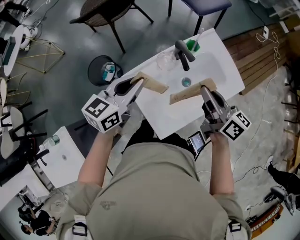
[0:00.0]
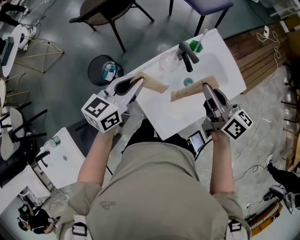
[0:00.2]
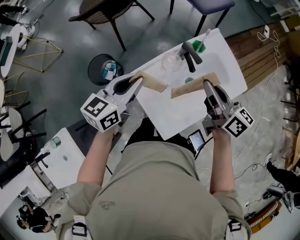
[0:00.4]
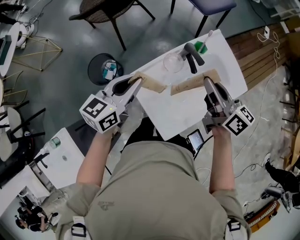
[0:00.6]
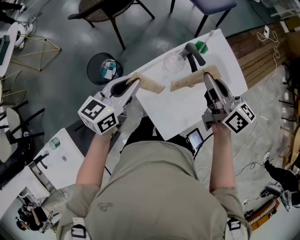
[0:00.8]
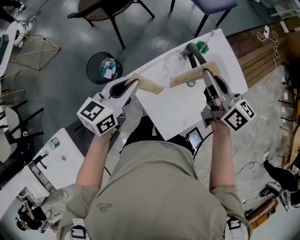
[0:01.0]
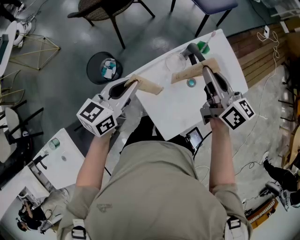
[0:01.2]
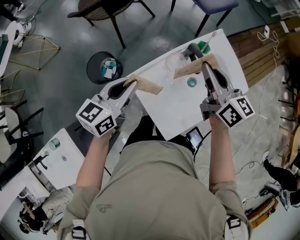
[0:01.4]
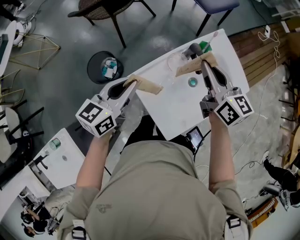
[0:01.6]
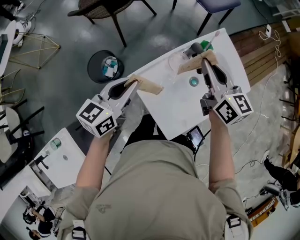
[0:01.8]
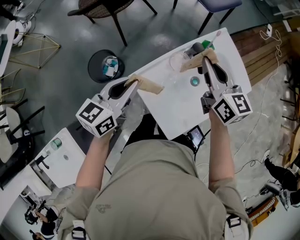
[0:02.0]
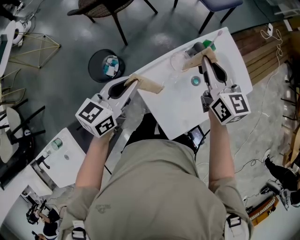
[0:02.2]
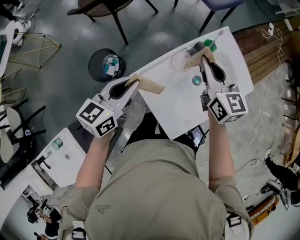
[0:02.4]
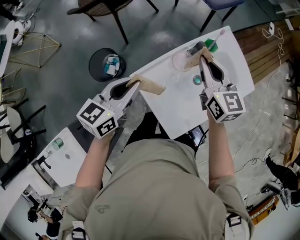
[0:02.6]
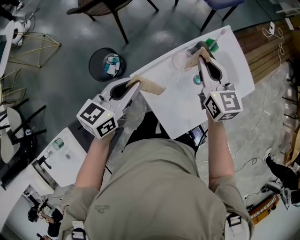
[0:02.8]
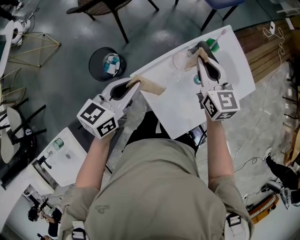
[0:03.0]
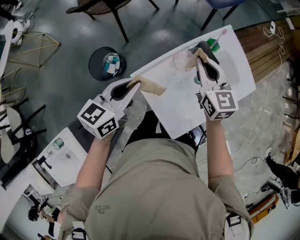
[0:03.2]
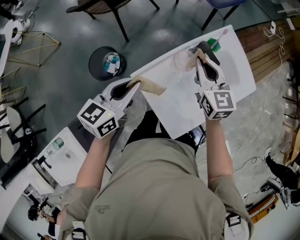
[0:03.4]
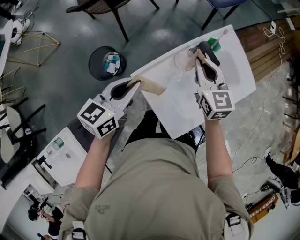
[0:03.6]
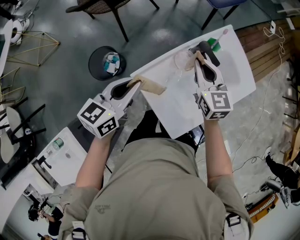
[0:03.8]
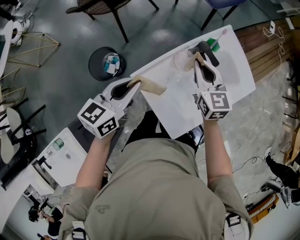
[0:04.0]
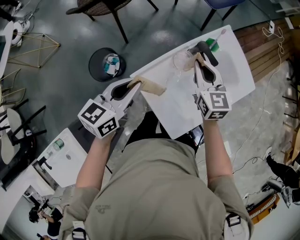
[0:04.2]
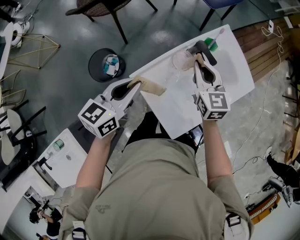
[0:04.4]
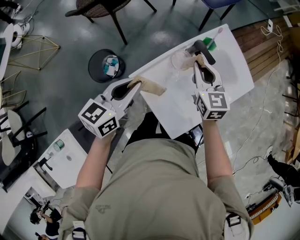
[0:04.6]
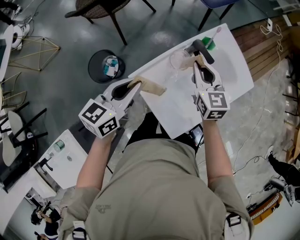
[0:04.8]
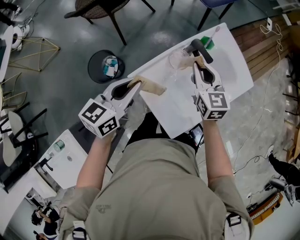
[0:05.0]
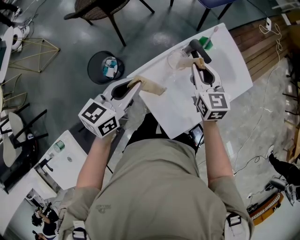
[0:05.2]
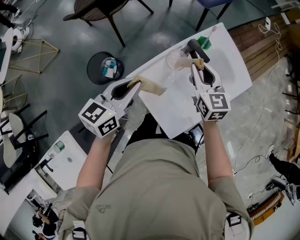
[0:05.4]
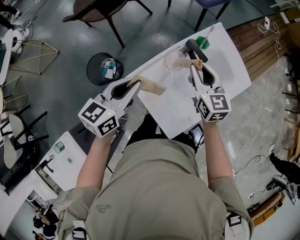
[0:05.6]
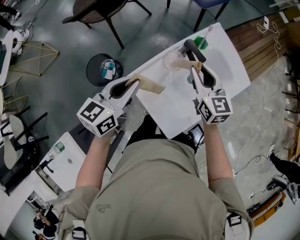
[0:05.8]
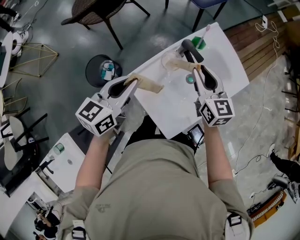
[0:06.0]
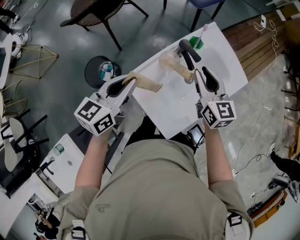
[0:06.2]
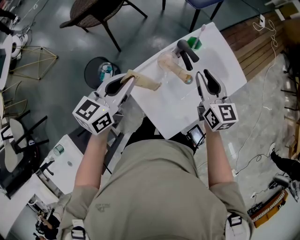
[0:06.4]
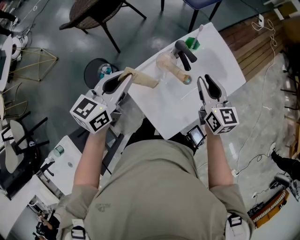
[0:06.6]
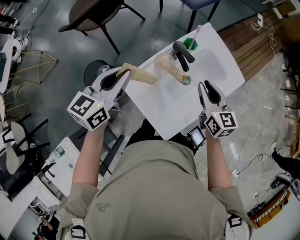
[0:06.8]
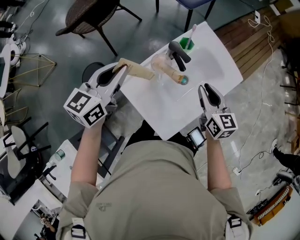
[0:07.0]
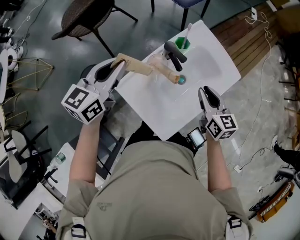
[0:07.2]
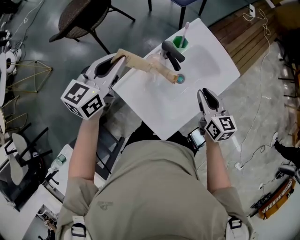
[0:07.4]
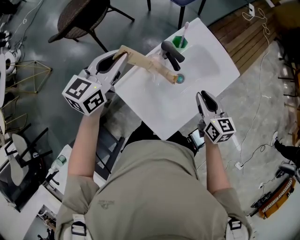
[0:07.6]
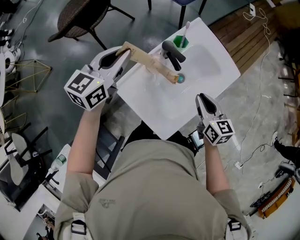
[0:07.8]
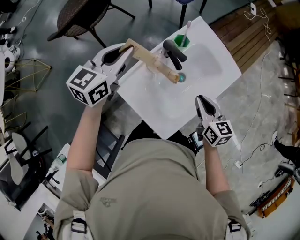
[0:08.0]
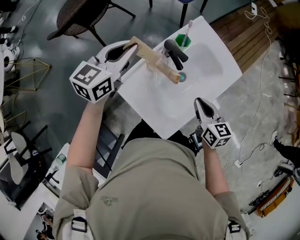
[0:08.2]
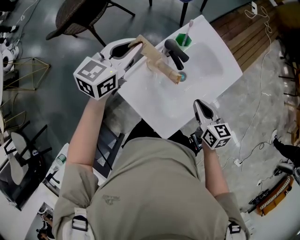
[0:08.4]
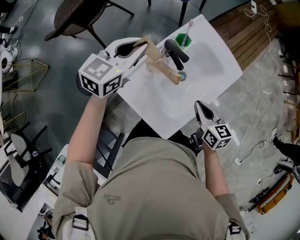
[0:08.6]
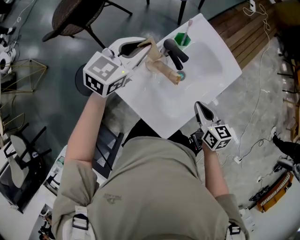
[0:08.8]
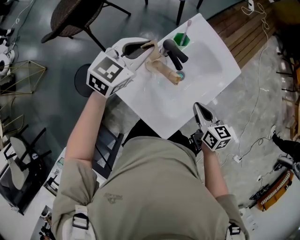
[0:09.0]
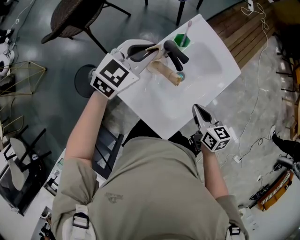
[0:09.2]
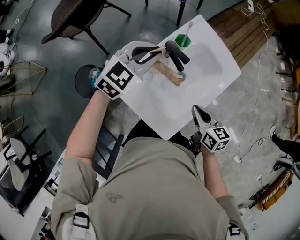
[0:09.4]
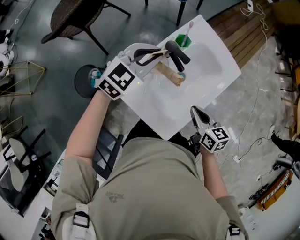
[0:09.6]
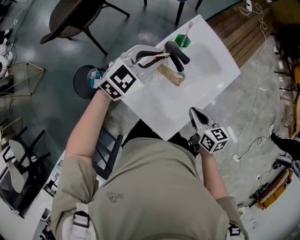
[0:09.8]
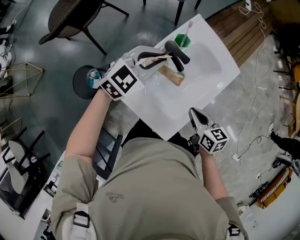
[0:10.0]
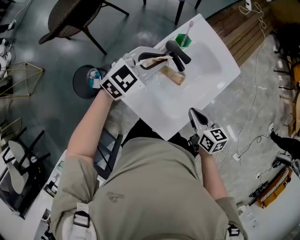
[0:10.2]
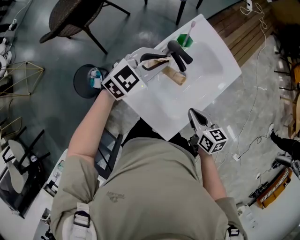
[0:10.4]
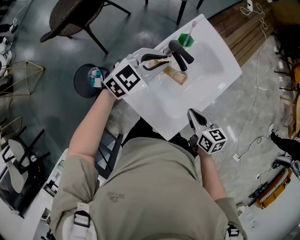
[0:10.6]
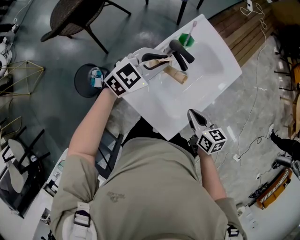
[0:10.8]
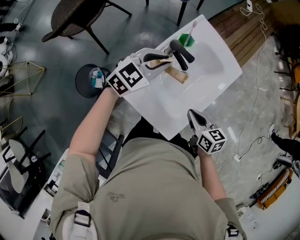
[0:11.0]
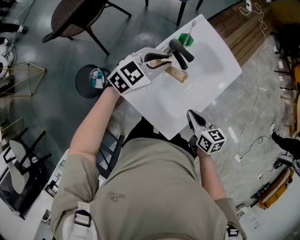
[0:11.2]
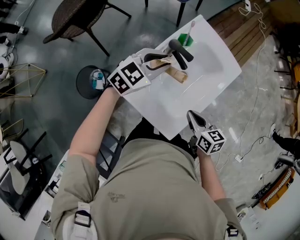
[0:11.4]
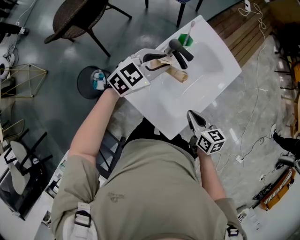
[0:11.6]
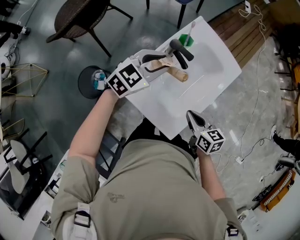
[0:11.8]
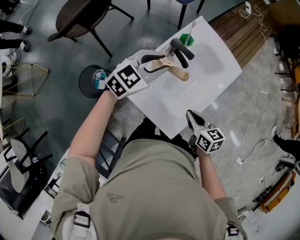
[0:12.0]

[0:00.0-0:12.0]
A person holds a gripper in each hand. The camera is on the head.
0:00.0 to 0:01.6: The right gripper goes some 10 cm forward and to the left, and swivels about 20 degrees; the left gripper heads to the left, covering roughly 5 cm.
0:01.6 to 0:03.0: The right gripper is displaced downward by some 5 cm.
0:03.0 to 0:04.4: There are only small adjustments of the grippers.
0:04.4 to 0:06.0: The right gripper moves some 5 cm.
0:06.0 to 0:07.6: The left gripper shifts roughly 10 cm forward. The right gripper is displaced to the right and backward by some 15 cm.
0:07.6 to 0:09.0: The left gripper shifts approximately 5 cm to the right, and rotates some 20 degrees. The right gripper moves some 5 cm.
0:09.0 to 0:10.4: The left gripper changes place by some 5 cm.
0:10.4 to 0:12.0: The grippers move only a little.

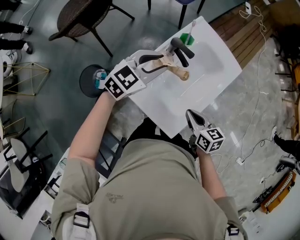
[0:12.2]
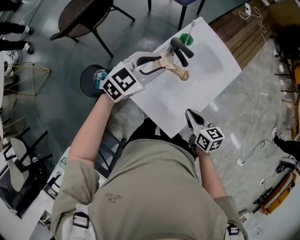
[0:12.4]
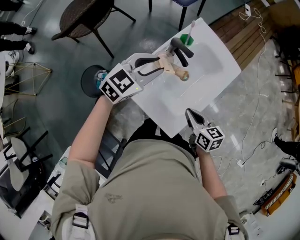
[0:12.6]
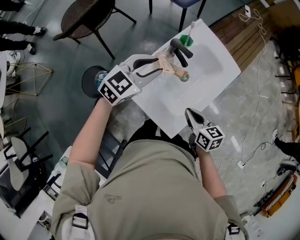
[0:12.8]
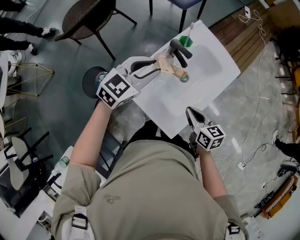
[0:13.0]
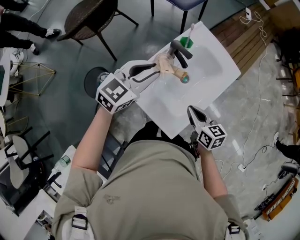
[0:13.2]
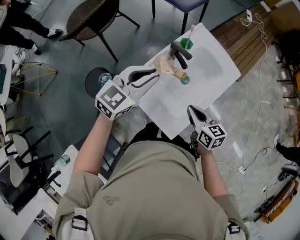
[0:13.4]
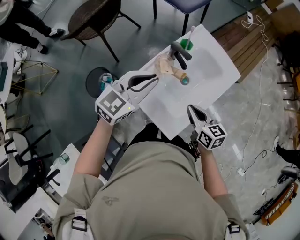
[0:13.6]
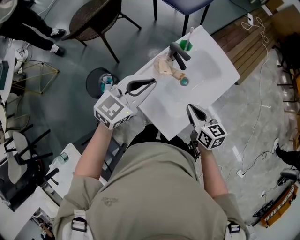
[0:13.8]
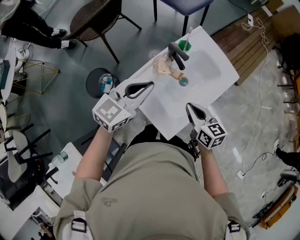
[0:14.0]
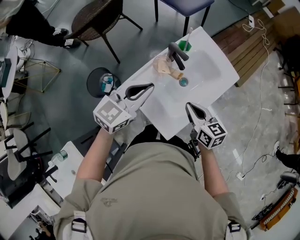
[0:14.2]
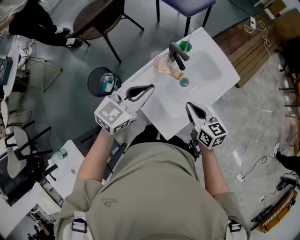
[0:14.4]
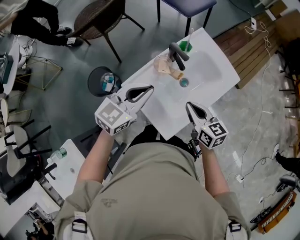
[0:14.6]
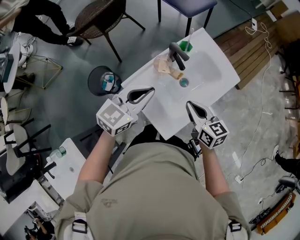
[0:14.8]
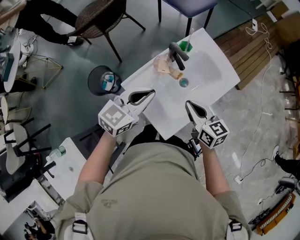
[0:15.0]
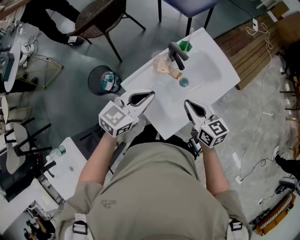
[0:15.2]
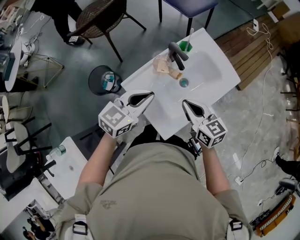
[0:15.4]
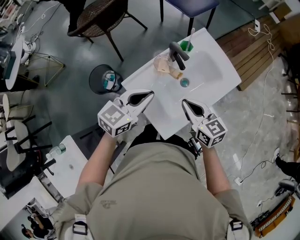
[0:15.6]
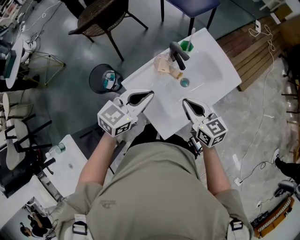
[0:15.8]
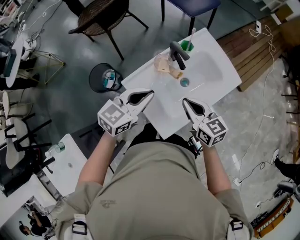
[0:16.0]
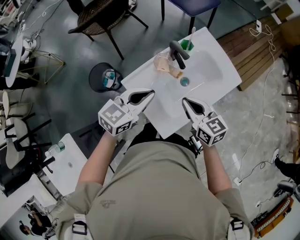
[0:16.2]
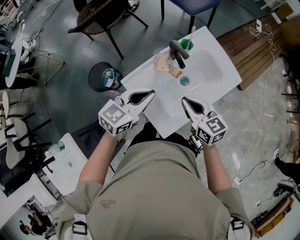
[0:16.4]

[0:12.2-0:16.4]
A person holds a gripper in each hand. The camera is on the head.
0:12.2 to 0:13.6: The left gripper heads backward and upward, covering about 10 cm.
0:13.6 to 0:15.0: The left gripper is displaced backward by roughly 5 cm.
0:15.0 to 0:16.4: The grippers move only a little.

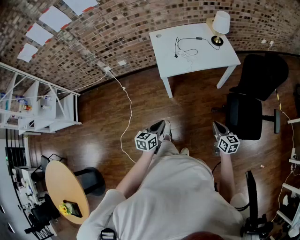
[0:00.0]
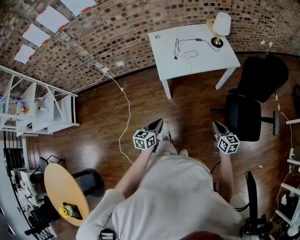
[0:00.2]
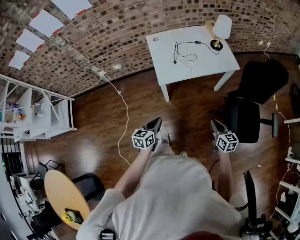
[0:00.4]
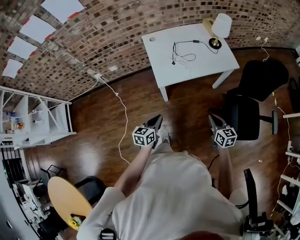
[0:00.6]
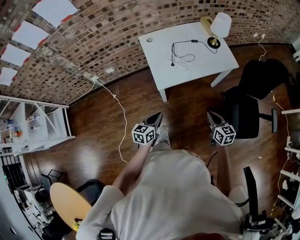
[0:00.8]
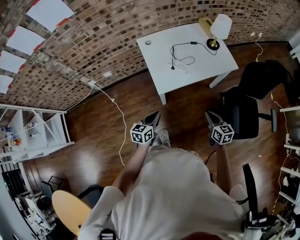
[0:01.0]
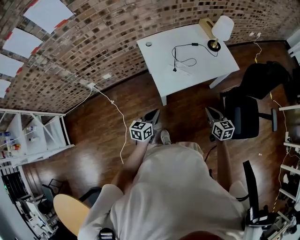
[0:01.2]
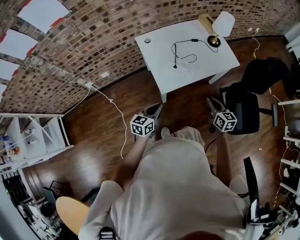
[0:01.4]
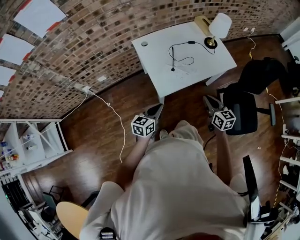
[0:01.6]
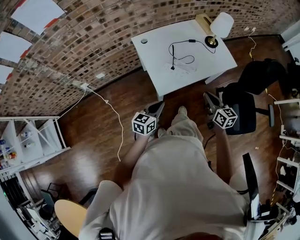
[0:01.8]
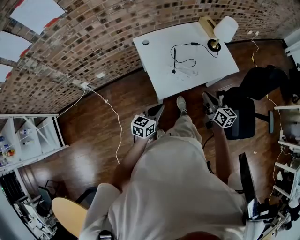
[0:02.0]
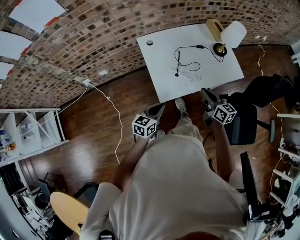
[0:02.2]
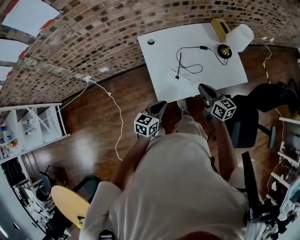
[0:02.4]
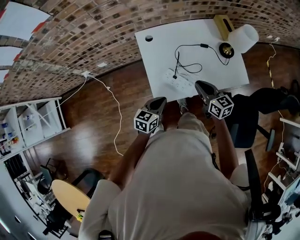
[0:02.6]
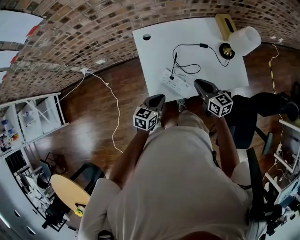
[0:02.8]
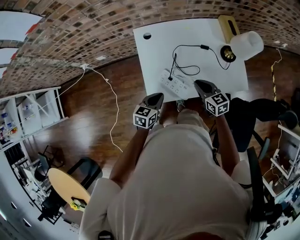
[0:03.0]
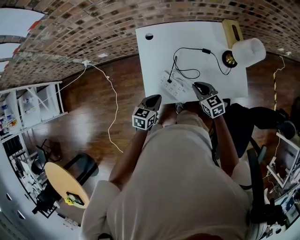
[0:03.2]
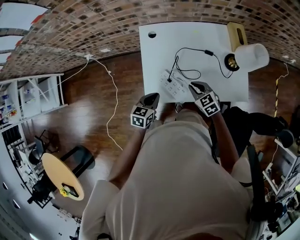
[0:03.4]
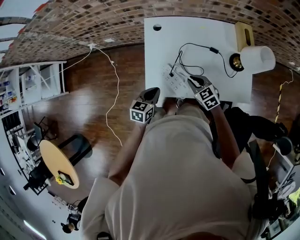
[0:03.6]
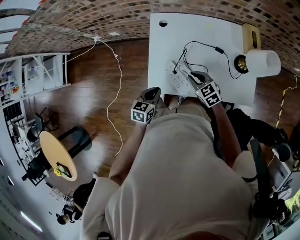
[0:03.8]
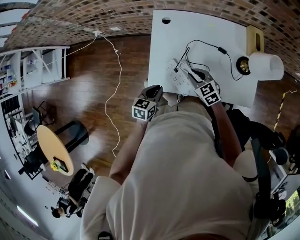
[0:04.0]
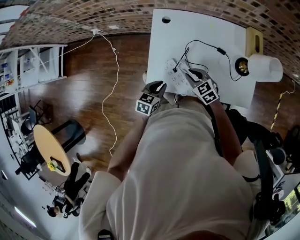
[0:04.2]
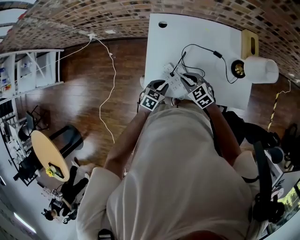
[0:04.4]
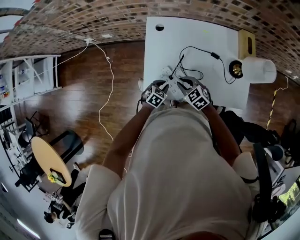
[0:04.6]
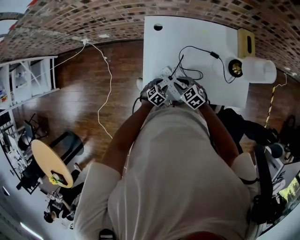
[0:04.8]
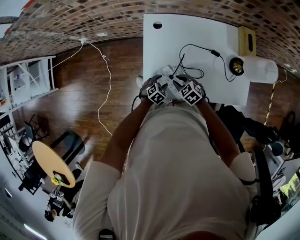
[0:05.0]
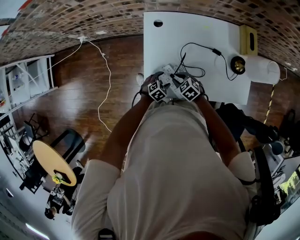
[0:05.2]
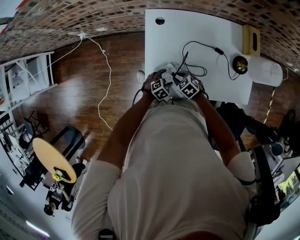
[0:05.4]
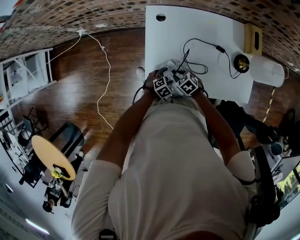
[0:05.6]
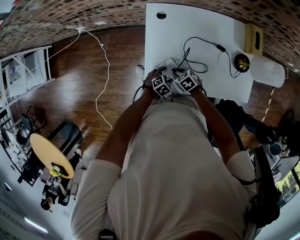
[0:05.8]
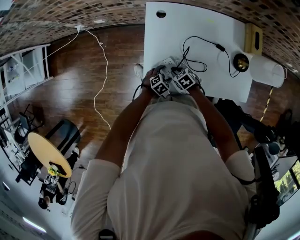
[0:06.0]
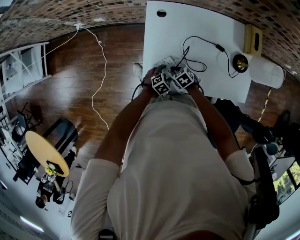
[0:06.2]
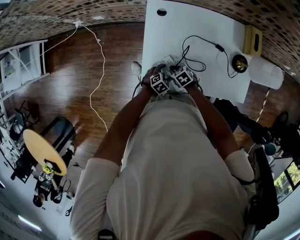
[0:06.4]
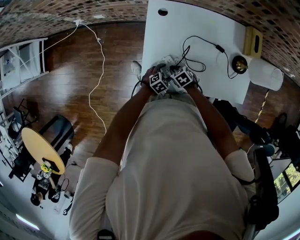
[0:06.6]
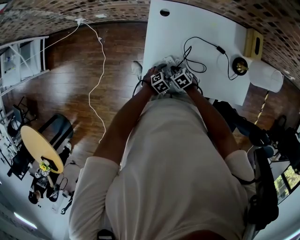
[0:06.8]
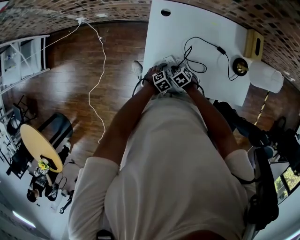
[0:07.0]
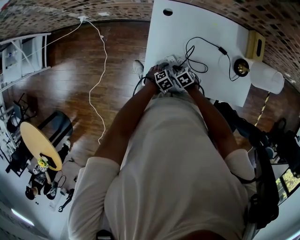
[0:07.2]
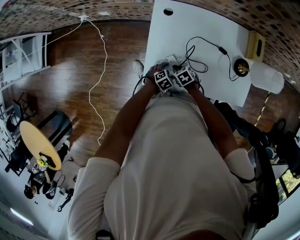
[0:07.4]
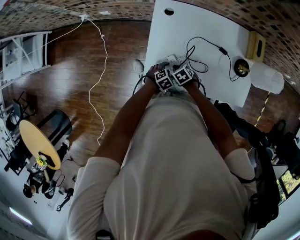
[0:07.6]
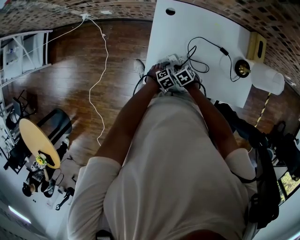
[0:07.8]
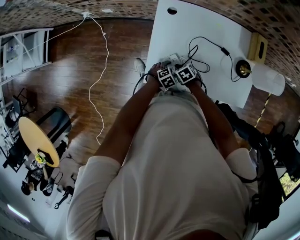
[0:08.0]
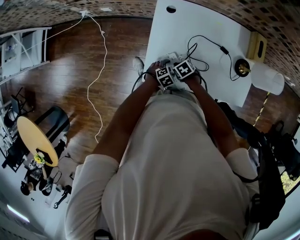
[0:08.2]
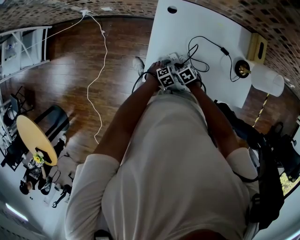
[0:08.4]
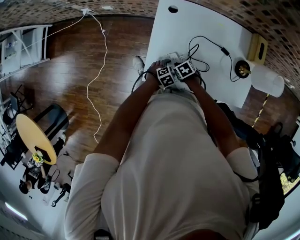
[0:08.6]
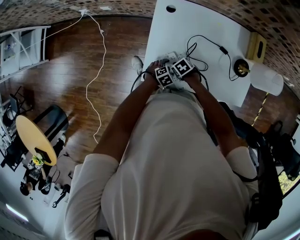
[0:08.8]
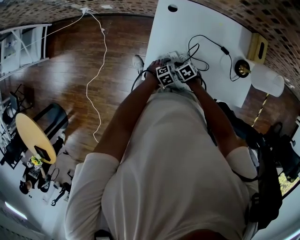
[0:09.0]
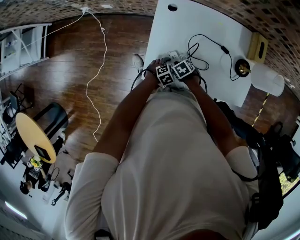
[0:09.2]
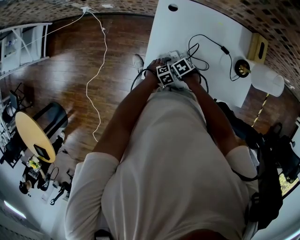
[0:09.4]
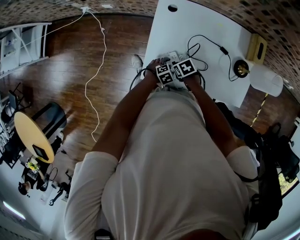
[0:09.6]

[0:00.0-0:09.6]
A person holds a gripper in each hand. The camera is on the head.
0:00.0 to 0:01.6: Both grippers travel together forward and to the left, some 35 cm.
0:01.6 to 0:03.2: The right gripper moves approximately 30 cm, and swivels roughly 40 degrees. The left gripper shifts by some 25 cm, and turns by about 20 degrees.
0:03.2 to 0:04.8: The left gripper moves downward, about 20 cm, rotates roughly 30 degrees, and opens. The right gripper shifts roughly 15 cm to the left and downward, and rotates approximately 30 degrees.
0:04.8 to 0:06.4: The left gripper opens up. Meanwhile the right gripper shifts some 15 cm downward, and swivels some 20 degrees.
0:06.4 to 0:09.6: There are only small adjustments of the grippers.
